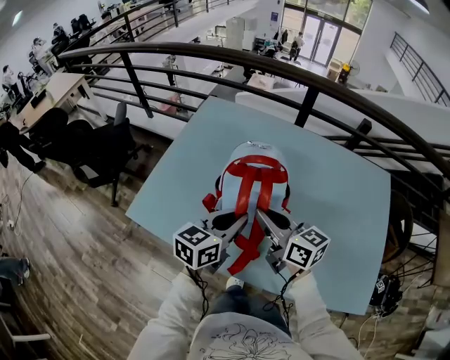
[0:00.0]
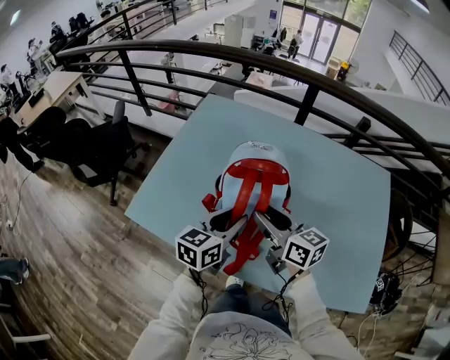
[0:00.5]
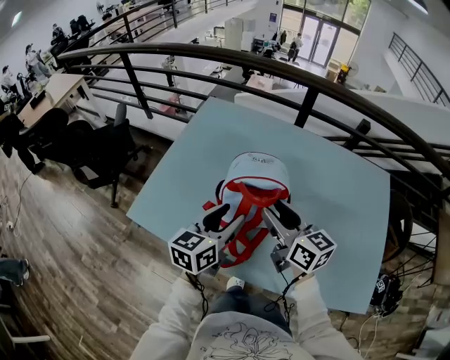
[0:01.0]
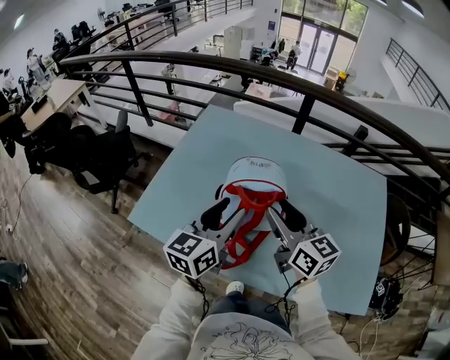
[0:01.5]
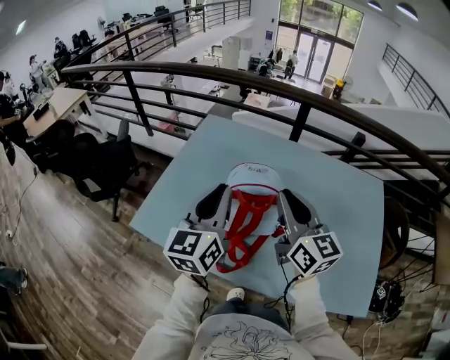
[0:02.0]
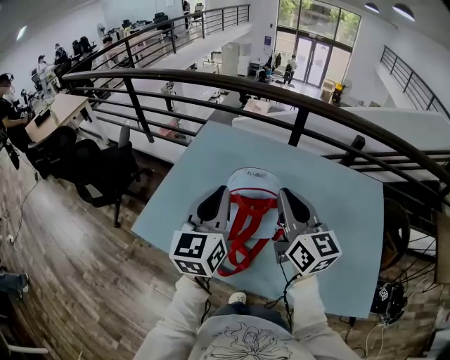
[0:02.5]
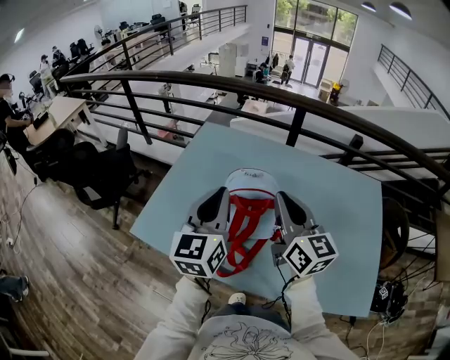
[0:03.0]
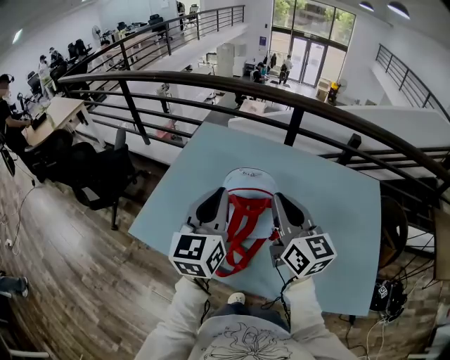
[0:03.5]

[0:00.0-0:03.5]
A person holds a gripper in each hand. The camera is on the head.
0:00.0 to 0:02.0: The right gripper moves upward and to the right, roughly 15 cm, changes its angle by approximately 30 degrees, and opens and closes again. Meanwhile the left gripper moves upward, some 15 cm, rotates approximately 30 degrees, and opens and closes again.
0:02.0 to 0:03.5: There are only small adjustments of the grippers.

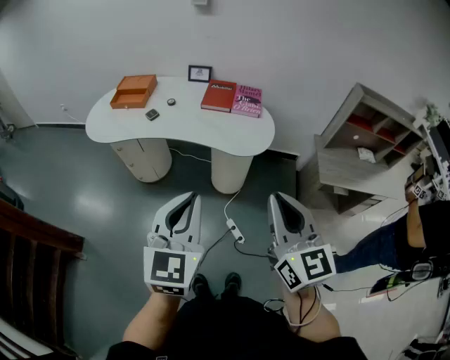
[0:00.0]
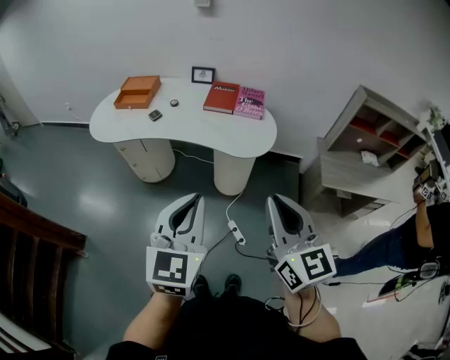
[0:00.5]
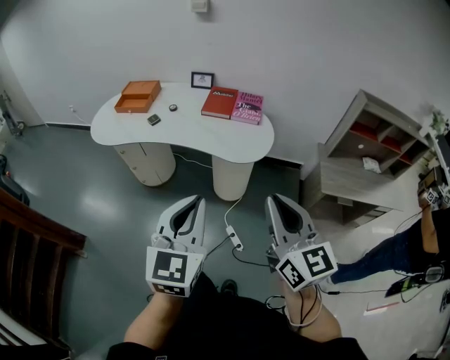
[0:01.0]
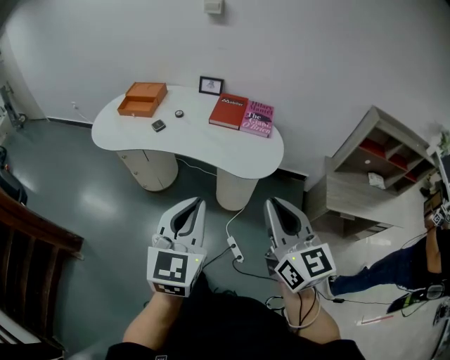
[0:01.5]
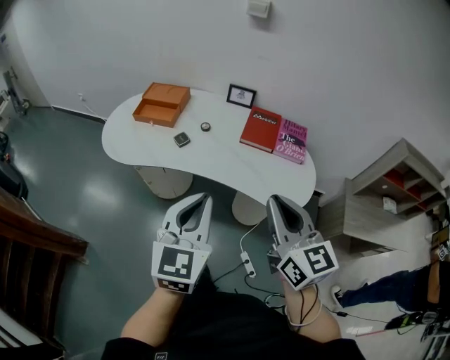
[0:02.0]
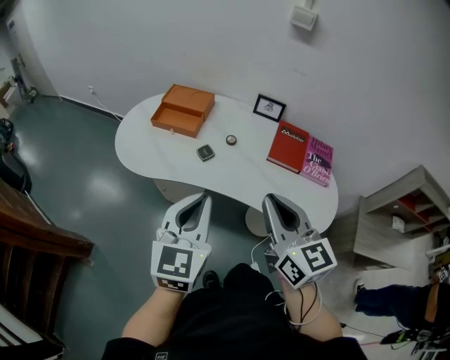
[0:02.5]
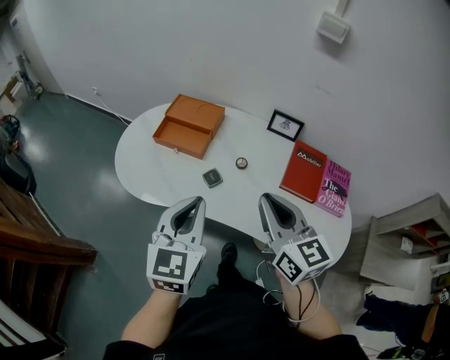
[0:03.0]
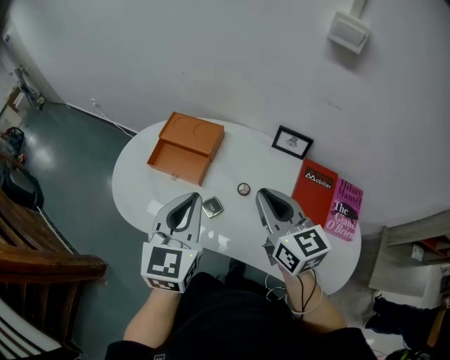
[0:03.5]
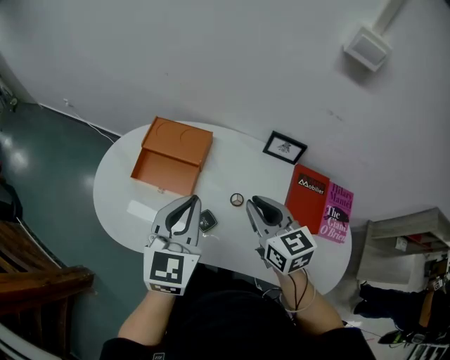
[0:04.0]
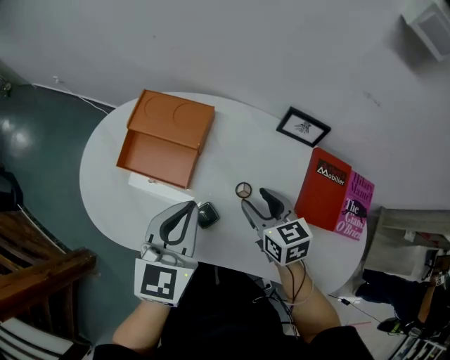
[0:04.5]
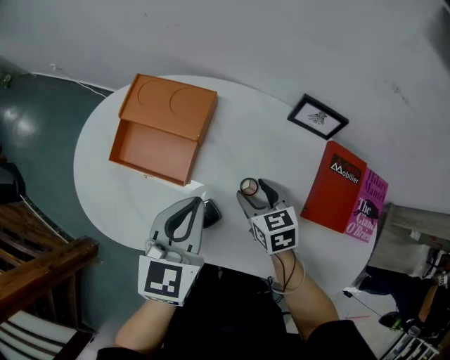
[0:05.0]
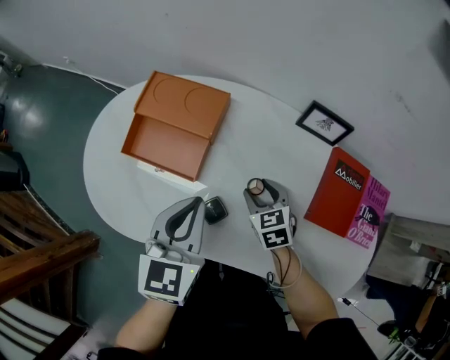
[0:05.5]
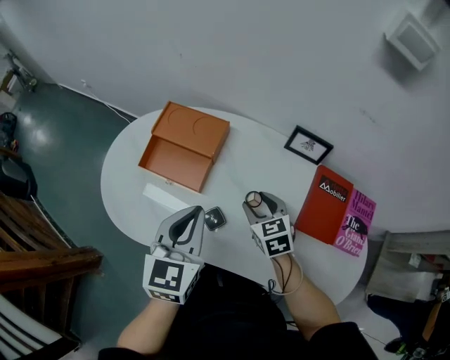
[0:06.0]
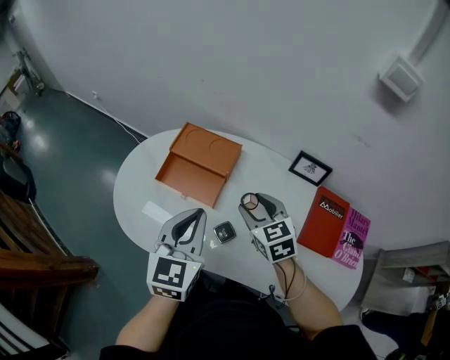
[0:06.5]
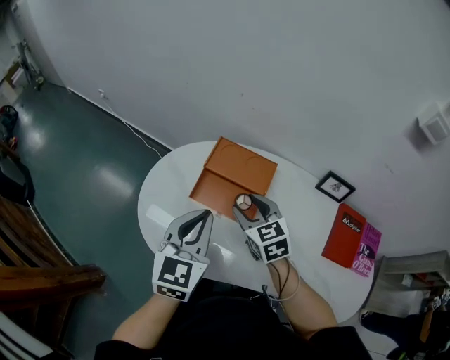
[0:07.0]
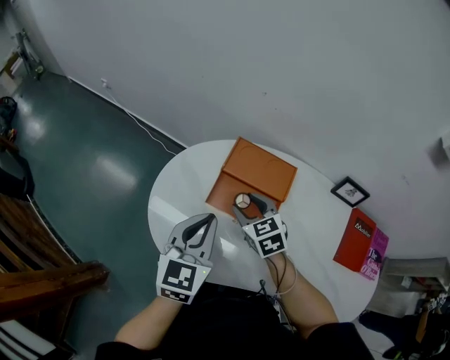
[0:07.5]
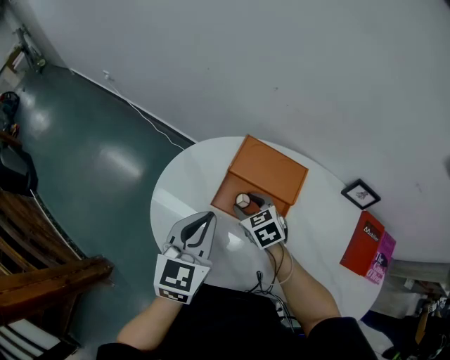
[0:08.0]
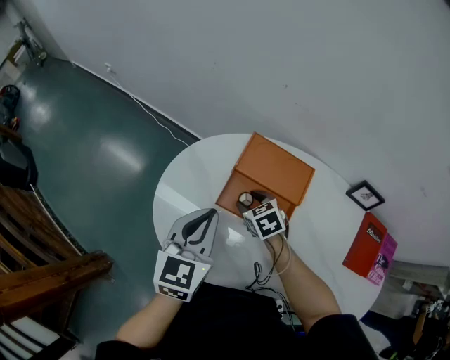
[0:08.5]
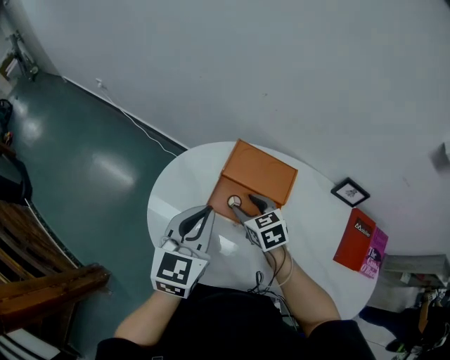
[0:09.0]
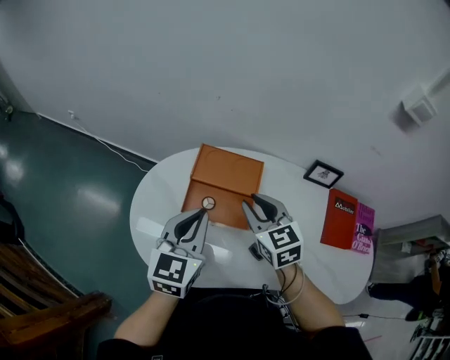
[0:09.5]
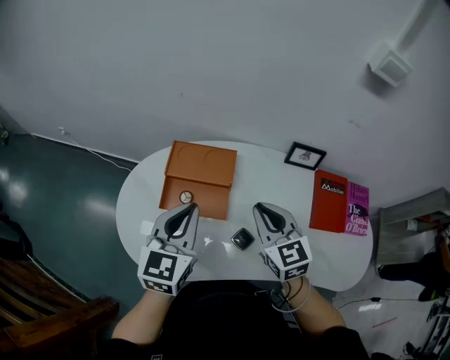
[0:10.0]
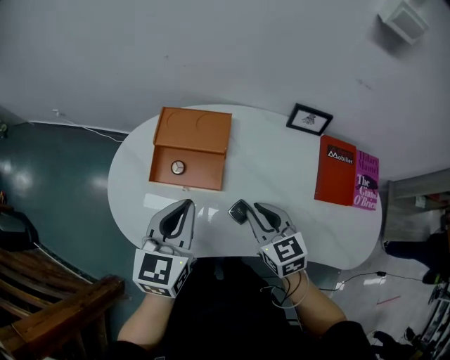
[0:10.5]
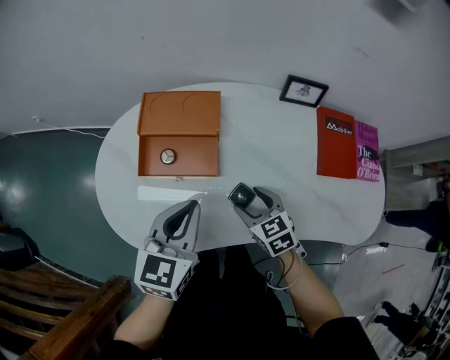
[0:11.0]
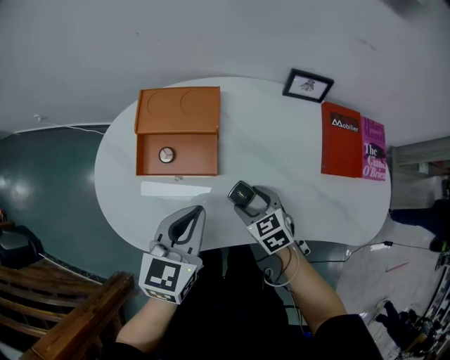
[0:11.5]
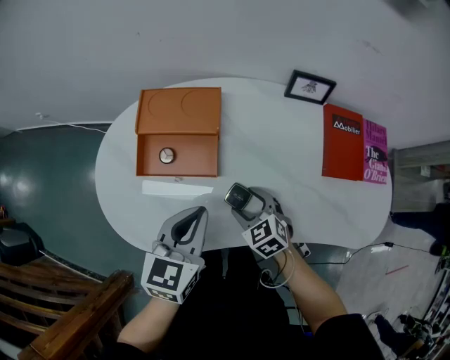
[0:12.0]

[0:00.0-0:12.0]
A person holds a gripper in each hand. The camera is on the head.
0:00.0 to 0:02.0: Both grippers travel together forward and to the left, approximately 25 cm.
0:02.0 to 0:04.0: The pair of grippers is taken forward, approximately 50 cm. The right gripper rotates about 20 degrees.
0:04.0 to 0:06.0: The right gripper is displaced downward by about 15 cm, turns by approximately 20 degrees, and opens up. The left gripper is displaced downward by some 5 cm.
0:06.0 to 0:08.0: Both grippers move to the left and forward, approximately 30 cm.
0:08.0 to 0:10.0: The left gripper heads to the right and upward, covering approximately 15 cm. Meanwhile the right gripper moves upward, to the right and backward, some 30 cm, turns by some 40 degrees, and closes up.
0:10.0 to 0:12.0: The right gripper heads downward, covering roughly 25 cm, changes its angle by about 30 degrees, and opens its fingers; the left gripper travels downward, backward and to the right by about 15 cm.

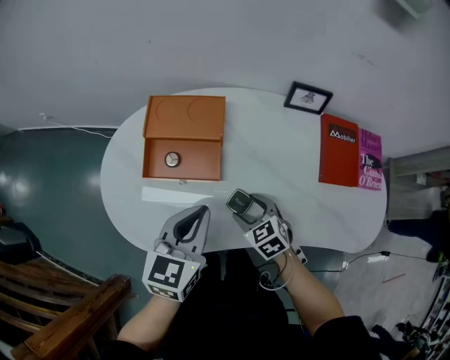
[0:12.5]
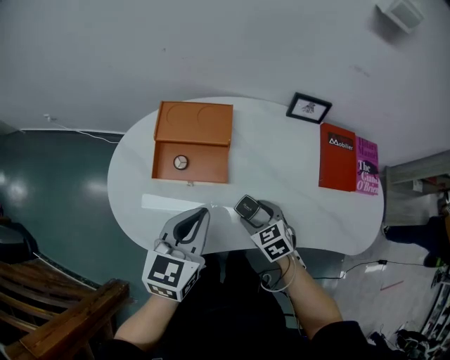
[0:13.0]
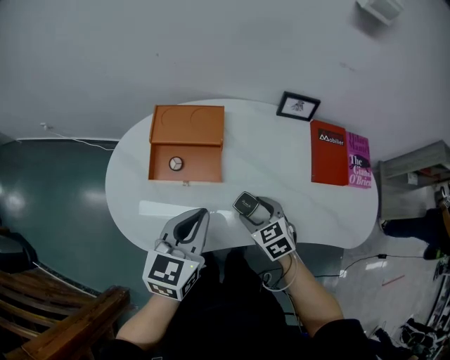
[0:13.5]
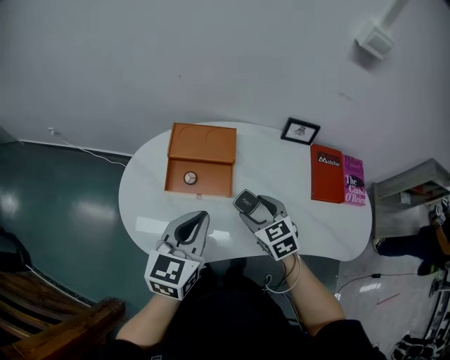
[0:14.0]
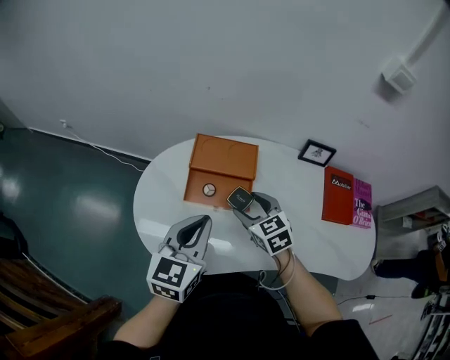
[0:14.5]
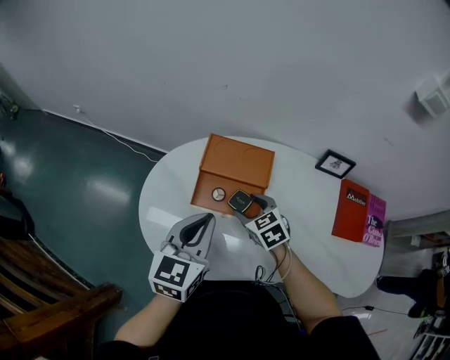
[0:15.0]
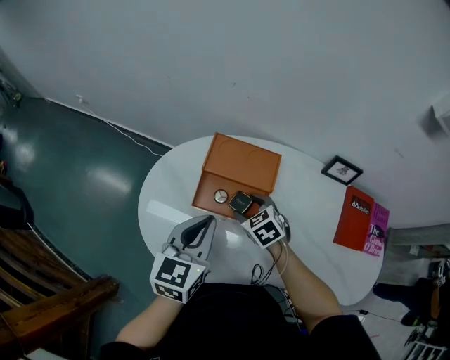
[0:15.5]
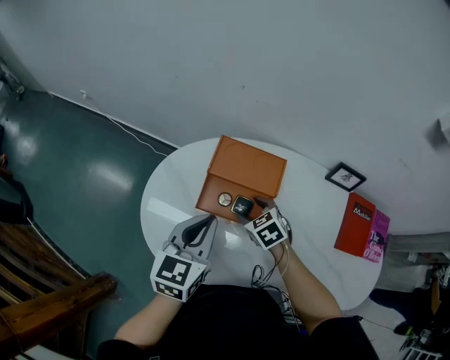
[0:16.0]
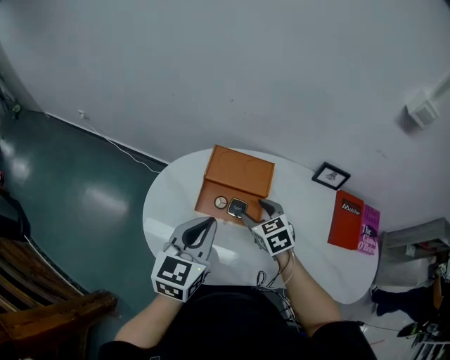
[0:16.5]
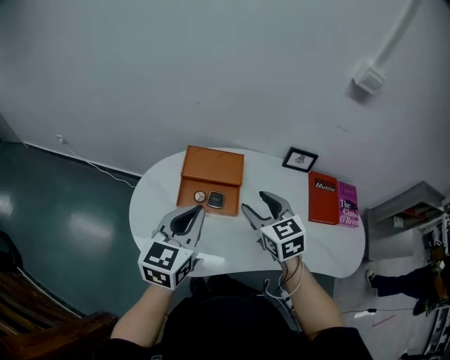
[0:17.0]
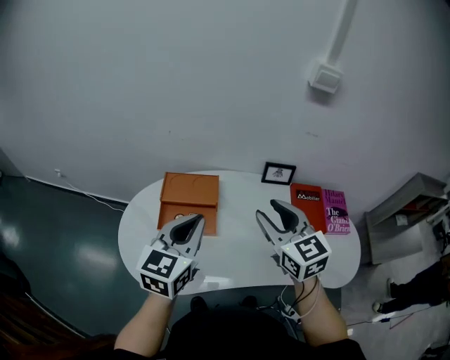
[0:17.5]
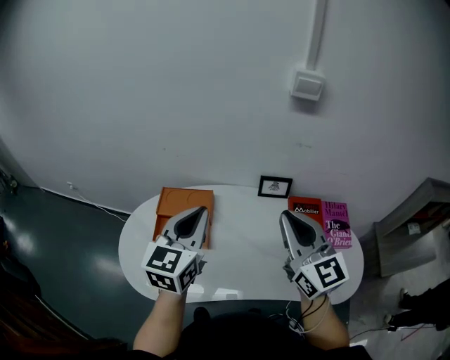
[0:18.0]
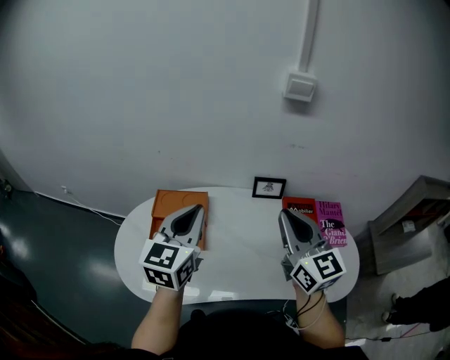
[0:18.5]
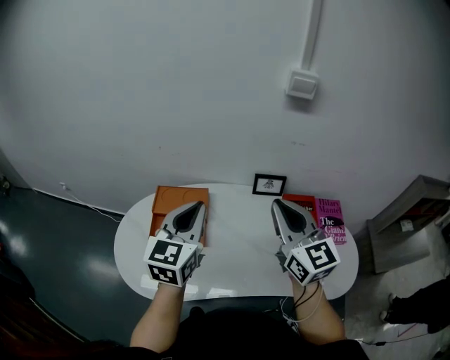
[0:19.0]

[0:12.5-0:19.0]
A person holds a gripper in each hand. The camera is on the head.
0:12.5 to 0:14.5: The left gripper travels to the left and upward by approximately 15 cm. Meanwhile the right gripper shifts some 20 cm upward, to the left and forward.
0:14.5 to 0:17.0: The right gripper moves upward, approximately 10 cm.
0:17.0 to 0:19.0: Both grippers travel together to the right and upward, some 25 cm. The right gripper points its fingers about 30 degrees further upward, and closes its fingers.

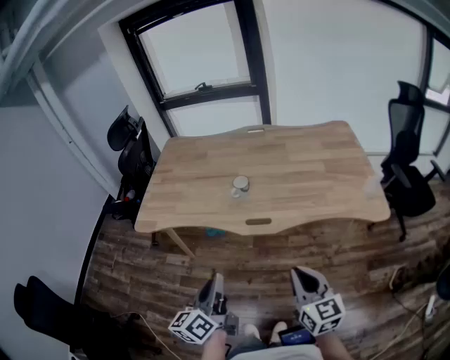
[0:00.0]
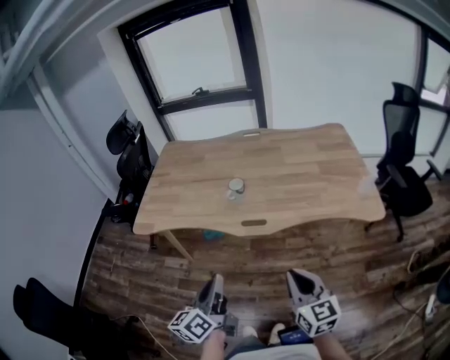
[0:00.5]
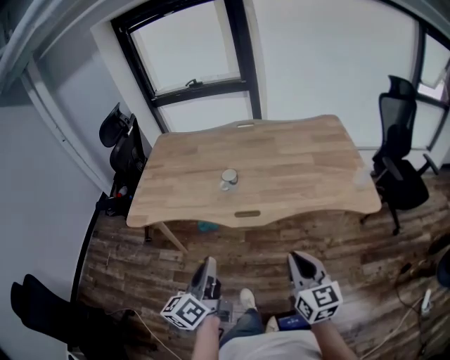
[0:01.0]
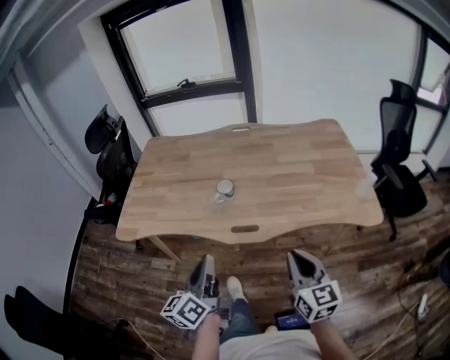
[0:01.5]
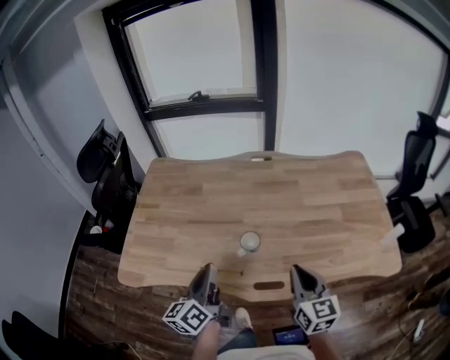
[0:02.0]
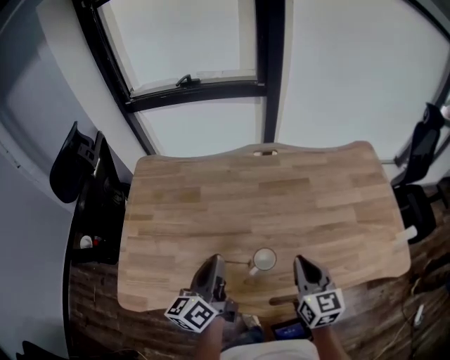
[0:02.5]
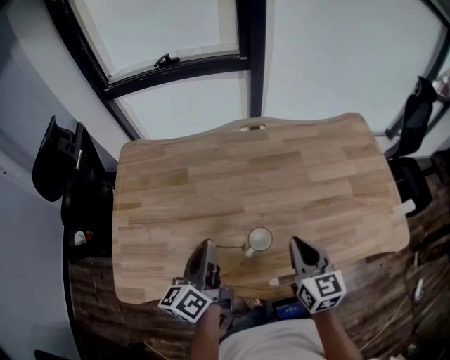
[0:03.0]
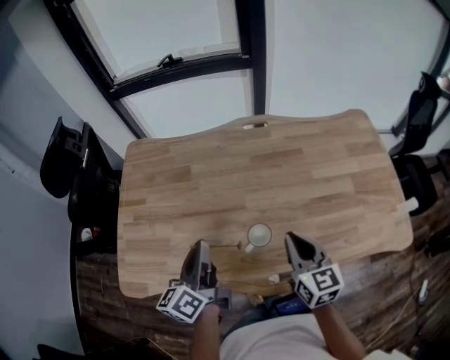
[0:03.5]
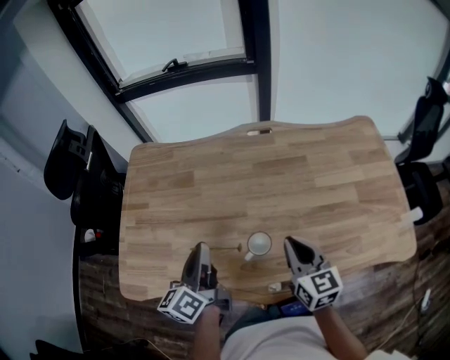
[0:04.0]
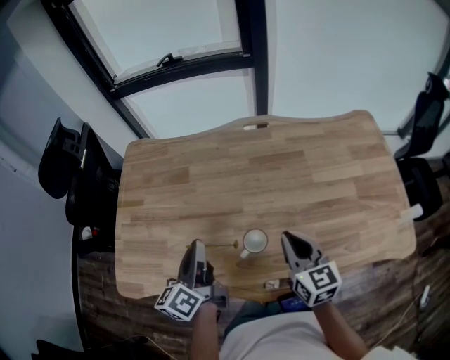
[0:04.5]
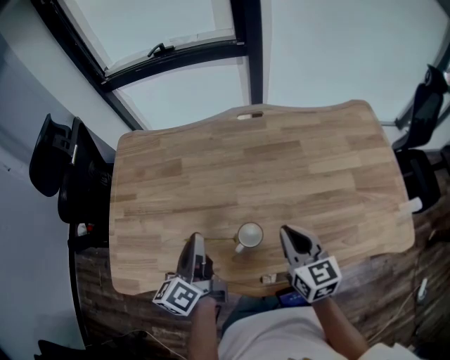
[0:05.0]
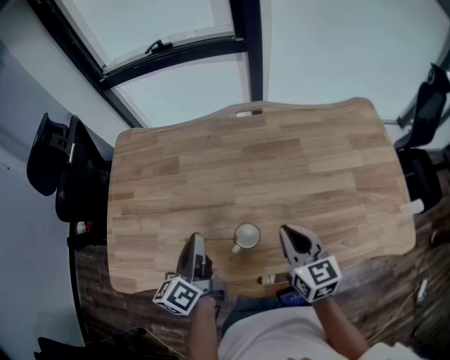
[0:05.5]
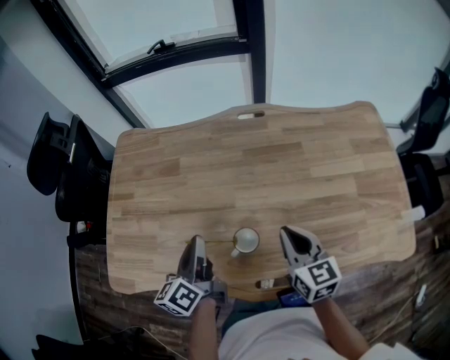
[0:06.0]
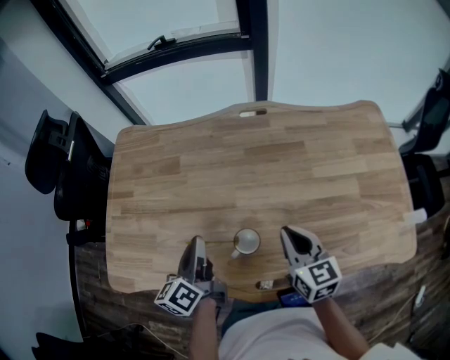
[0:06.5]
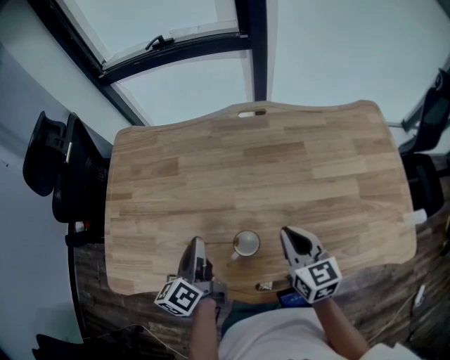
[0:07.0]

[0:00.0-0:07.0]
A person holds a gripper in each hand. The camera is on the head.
0:00.0 to 0:02.0: The grippers both shift forward by some 30 cm.
0:02.0 to 0:03.5: The right gripper travels forward and to the left by about 15 cm. The left gripper is displaced forward by approximately 10 cm.
0:03.5 to 0:05.0: The grippers make only small movements.
0:05.0 to 0:07.0: The grippers move only a little.
